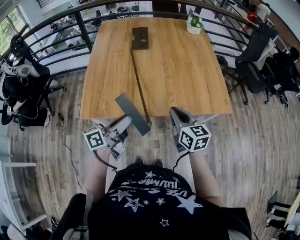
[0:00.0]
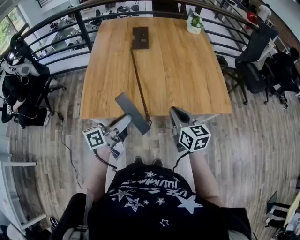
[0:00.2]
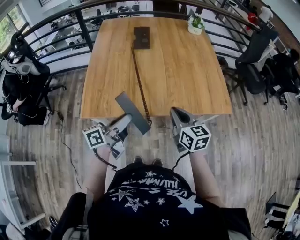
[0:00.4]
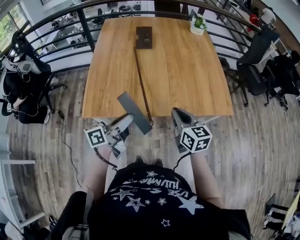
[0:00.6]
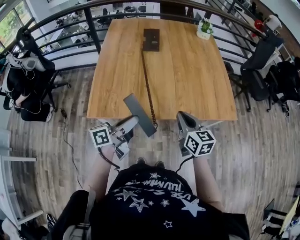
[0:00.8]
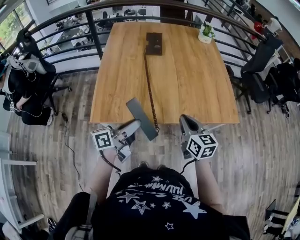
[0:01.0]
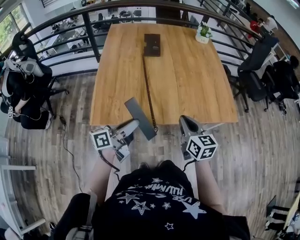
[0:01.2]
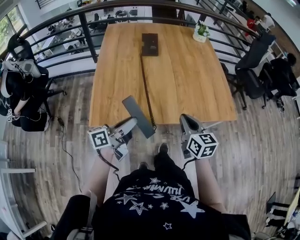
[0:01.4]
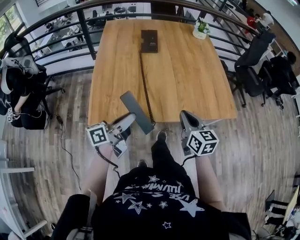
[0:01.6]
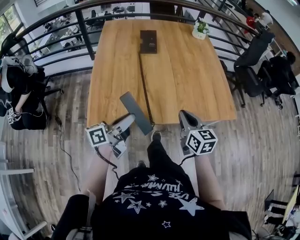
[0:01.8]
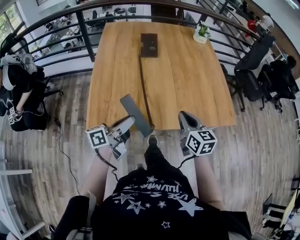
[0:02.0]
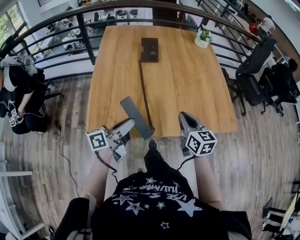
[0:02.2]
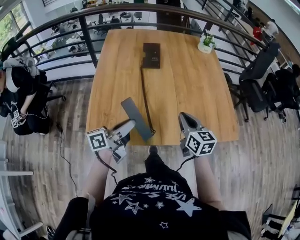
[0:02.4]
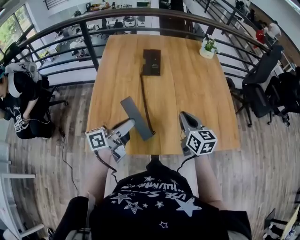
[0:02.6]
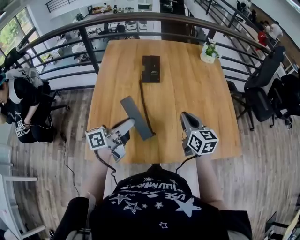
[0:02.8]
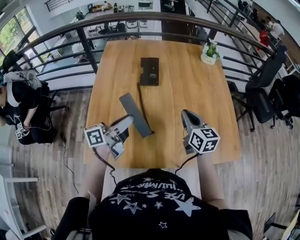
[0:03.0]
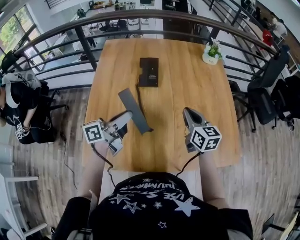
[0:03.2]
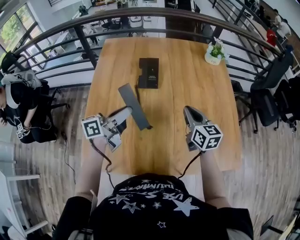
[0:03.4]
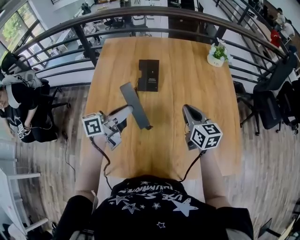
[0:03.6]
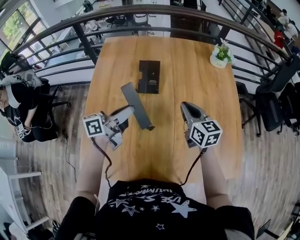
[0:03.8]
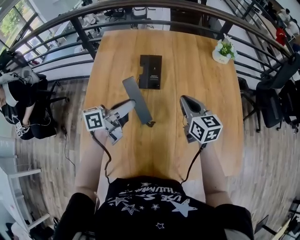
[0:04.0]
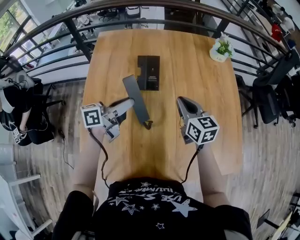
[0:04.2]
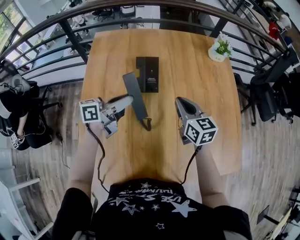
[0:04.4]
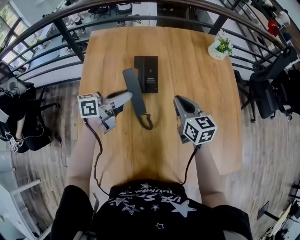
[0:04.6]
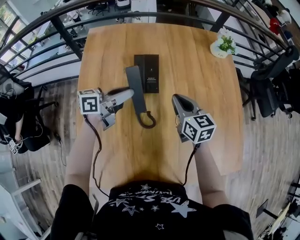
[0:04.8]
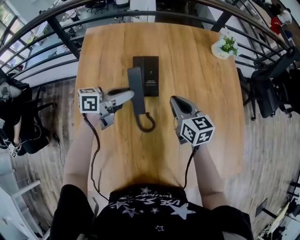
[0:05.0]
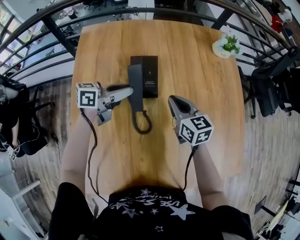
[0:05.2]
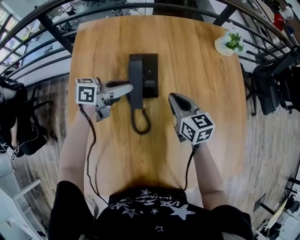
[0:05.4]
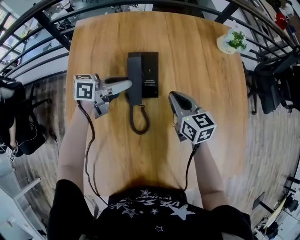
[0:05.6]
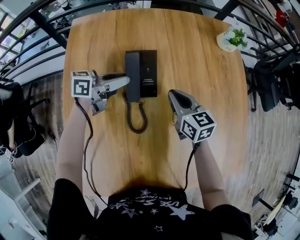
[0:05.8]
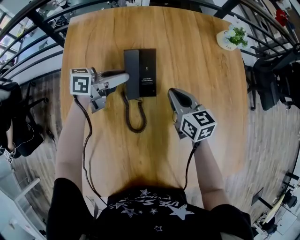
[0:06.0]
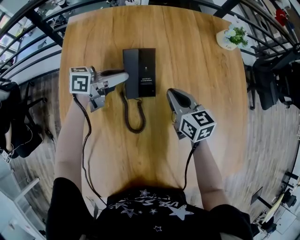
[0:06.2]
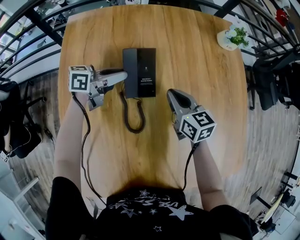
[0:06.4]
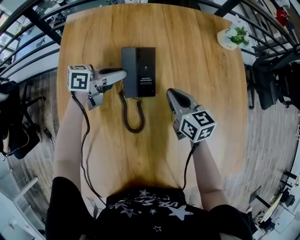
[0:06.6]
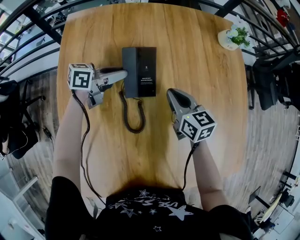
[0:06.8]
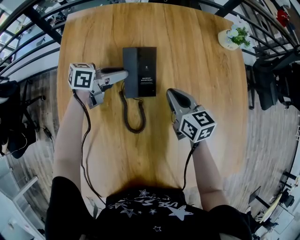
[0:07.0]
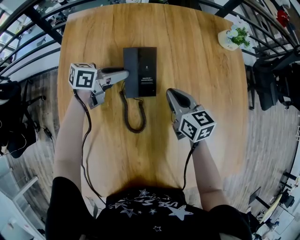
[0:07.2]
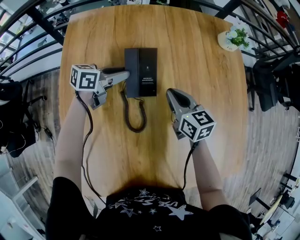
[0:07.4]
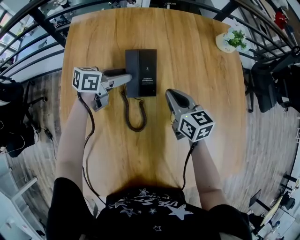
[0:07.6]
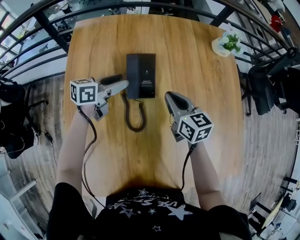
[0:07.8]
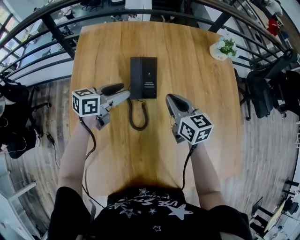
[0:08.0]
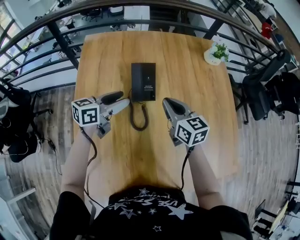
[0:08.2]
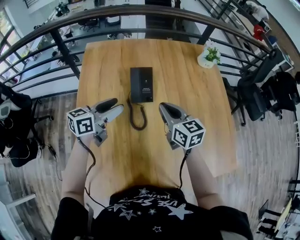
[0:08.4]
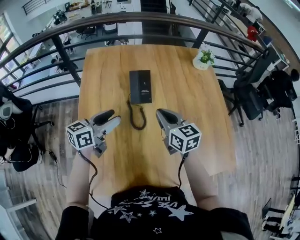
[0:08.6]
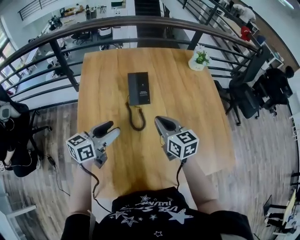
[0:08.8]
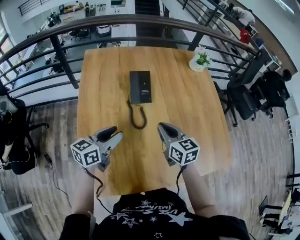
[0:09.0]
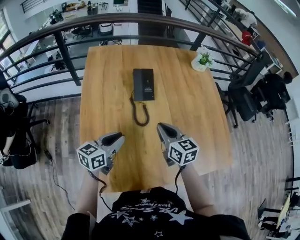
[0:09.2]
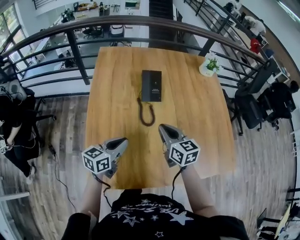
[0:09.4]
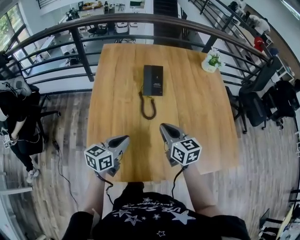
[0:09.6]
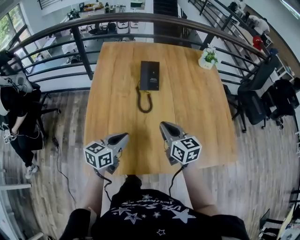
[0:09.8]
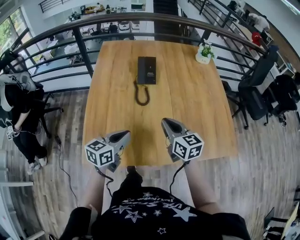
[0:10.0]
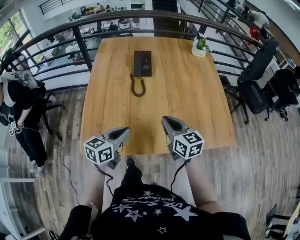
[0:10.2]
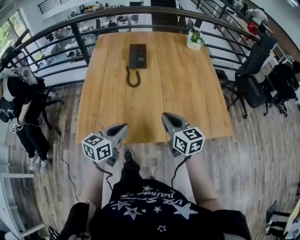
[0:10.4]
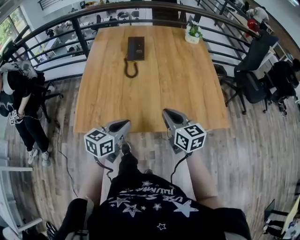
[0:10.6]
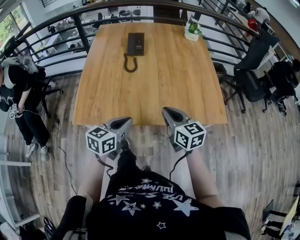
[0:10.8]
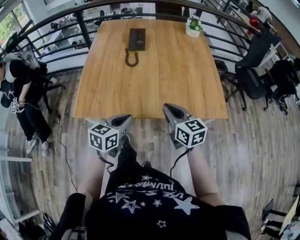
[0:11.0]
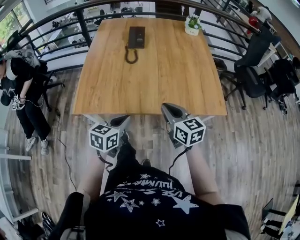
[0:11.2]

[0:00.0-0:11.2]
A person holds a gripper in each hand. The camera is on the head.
0:00.0 to 0:01.6: The left gripper travels to the left by roughly 5 cm.
0:01.6 to 0:03.2: The grippers both shift forward by approximately 30 cm.
0:03.2 to 0:04.8: The left gripper is displaced forward by some 20 cm. Meanwhile the right gripper heads forward and to the left, covering about 15 cm.
0:04.8 to 0:06.4: The left gripper travels forward and downward by some 15 cm; the right gripper moves downward and forward, about 10 cm.
0:06.4 to 0:08.0: The right gripper is displaced upward by roughly 5 cm; the left gripper heads backward, covering approximately 5 cm, and opens its fingers.
0:08.0 to 0:09.6: The two grippers go about 25 cm backward. The left gripper closes its fingers.
0:09.6 to 0:11.2: Both grippers move backward and to the right, some 30 cm.

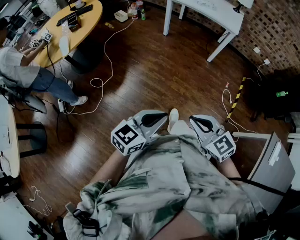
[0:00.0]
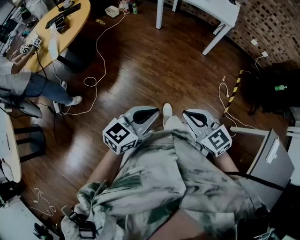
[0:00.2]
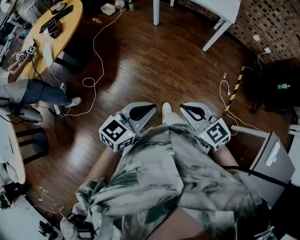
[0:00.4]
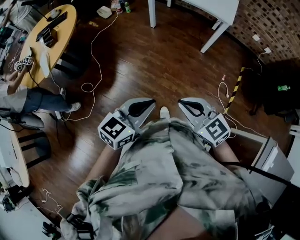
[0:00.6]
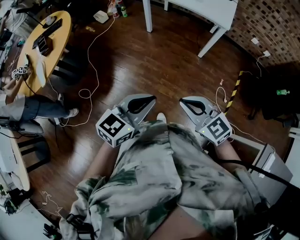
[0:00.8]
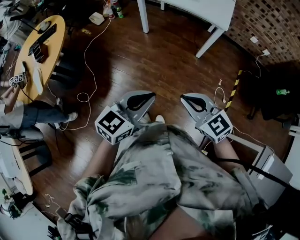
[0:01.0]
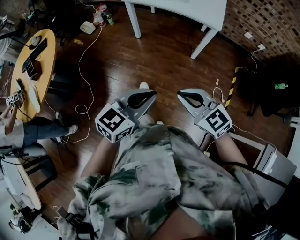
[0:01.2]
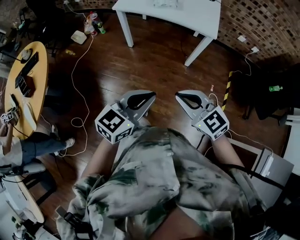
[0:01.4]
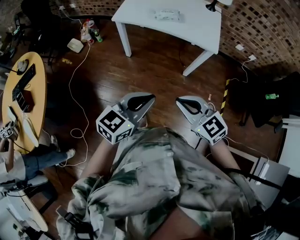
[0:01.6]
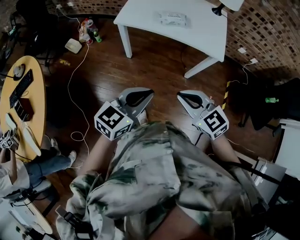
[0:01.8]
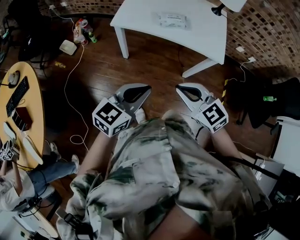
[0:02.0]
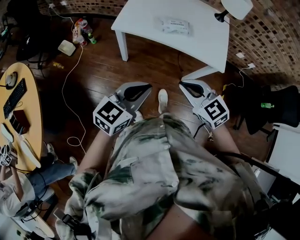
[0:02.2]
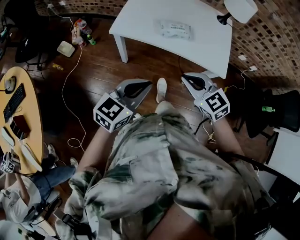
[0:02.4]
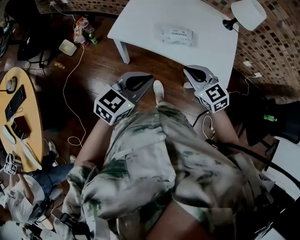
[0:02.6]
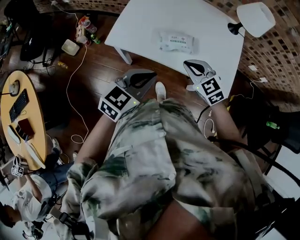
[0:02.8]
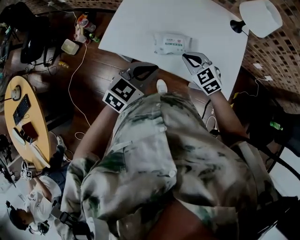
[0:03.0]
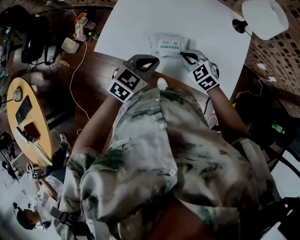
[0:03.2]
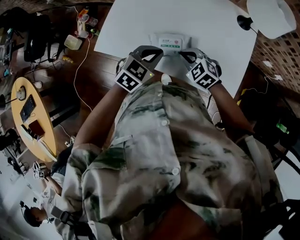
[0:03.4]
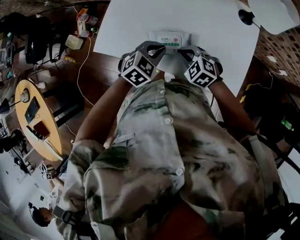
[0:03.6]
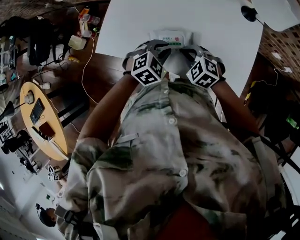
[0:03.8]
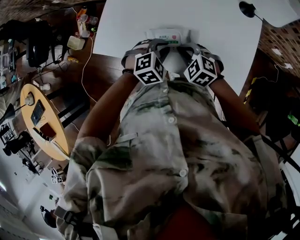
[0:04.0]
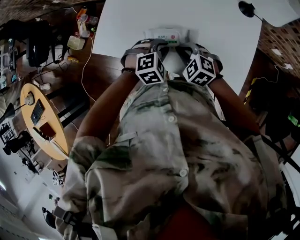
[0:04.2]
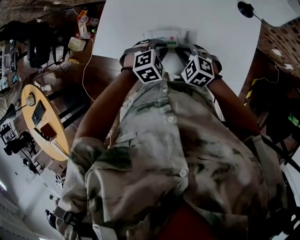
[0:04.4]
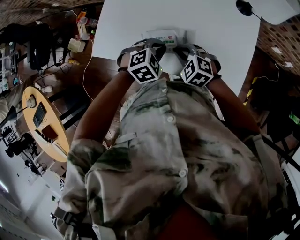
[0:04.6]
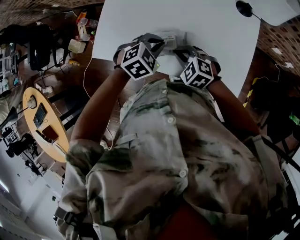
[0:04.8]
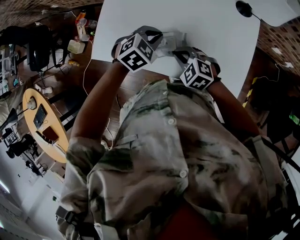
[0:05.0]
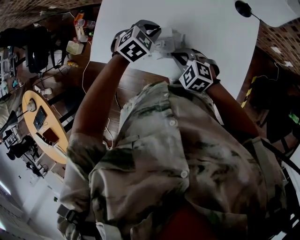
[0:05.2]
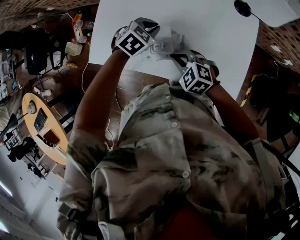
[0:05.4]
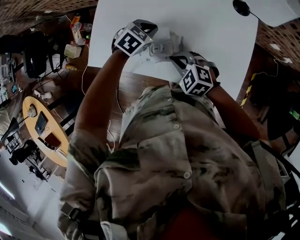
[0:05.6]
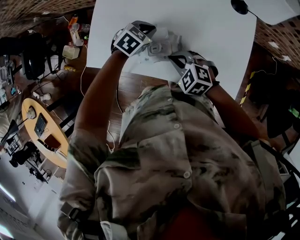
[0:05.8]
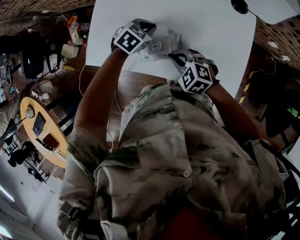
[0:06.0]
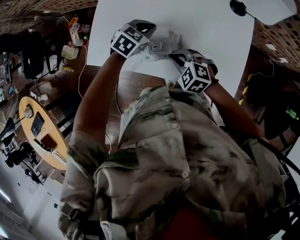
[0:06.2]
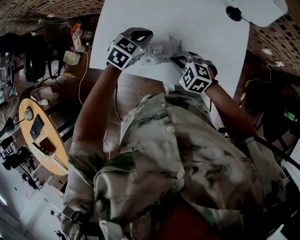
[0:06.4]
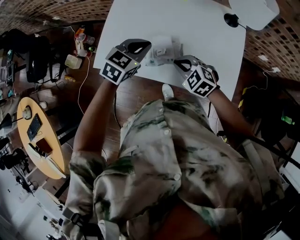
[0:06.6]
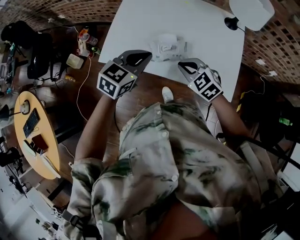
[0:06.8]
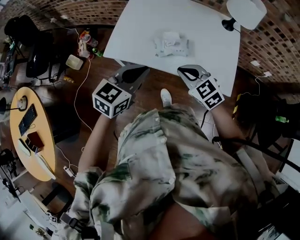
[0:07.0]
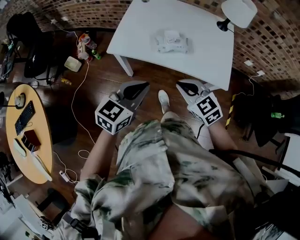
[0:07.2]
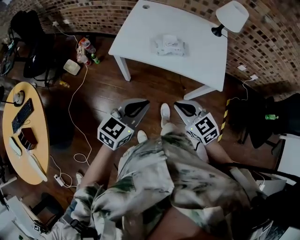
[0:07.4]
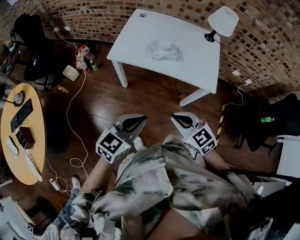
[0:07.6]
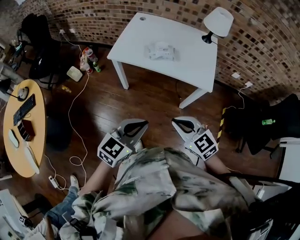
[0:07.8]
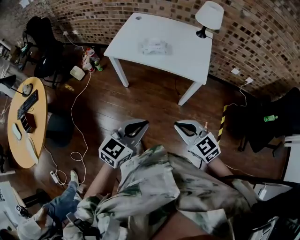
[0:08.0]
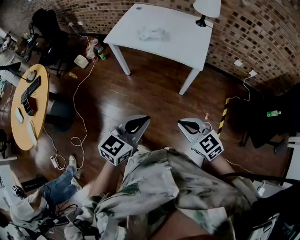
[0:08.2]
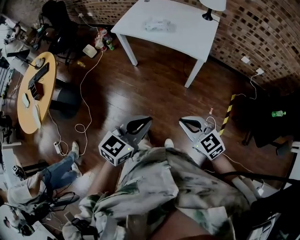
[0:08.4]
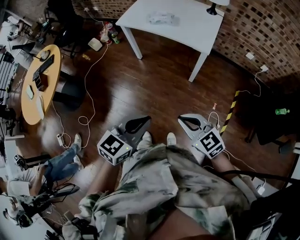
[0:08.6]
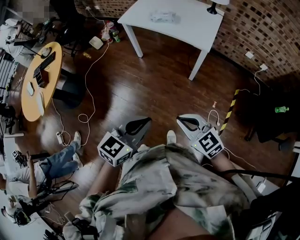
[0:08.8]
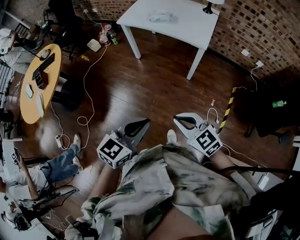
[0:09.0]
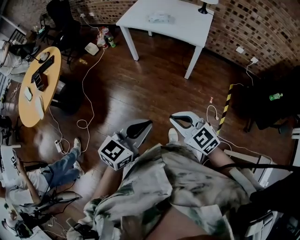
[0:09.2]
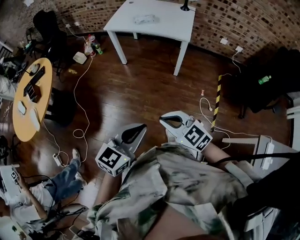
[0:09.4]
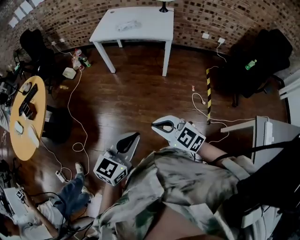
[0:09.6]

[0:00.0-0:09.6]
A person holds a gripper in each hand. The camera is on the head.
0:00.0 to 0:01.6: Both grippers are carried forward, some 60 cm.
0:01.6 to 0:03.2: The two grippers travel together, forward, some 50 cm. The left gripper changes its angle by some 20 degrees. Meanwhile the right gripper turns by about 20 degrees.
0:03.2 to 0:04.8: The left gripper heads downward, forward and to the right, covering roughly 10 cm, and swivels approximately 30 degrees.
0:04.8 to 0:06.4: The left gripper is displaced forward by approximately 5 cm, and changes its angle by about 20 degrees.
0:06.4 to 0:08.0: The pair of grippers is taken backward, approximately 60 cm. The right gripper travels upward by roughly 20 cm, and rotates roughly 30 degrees; the left gripper changes its angle by roughly 30 degrees.
0:08.0 to 0:09.6: The two grippers go some 40 cm backward.

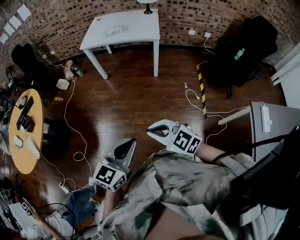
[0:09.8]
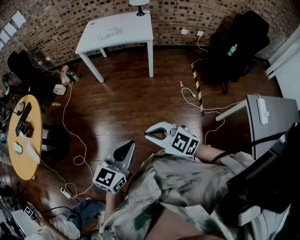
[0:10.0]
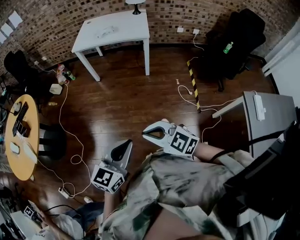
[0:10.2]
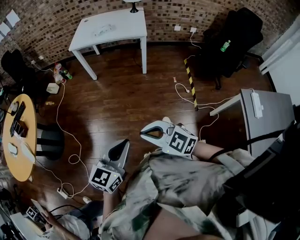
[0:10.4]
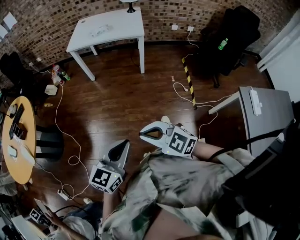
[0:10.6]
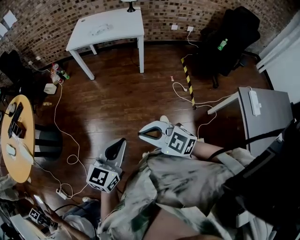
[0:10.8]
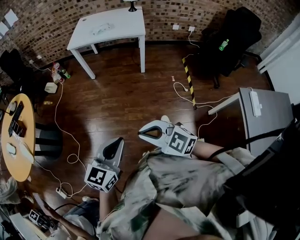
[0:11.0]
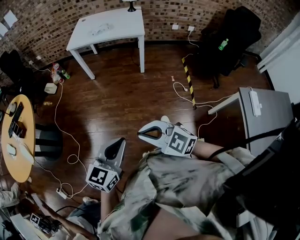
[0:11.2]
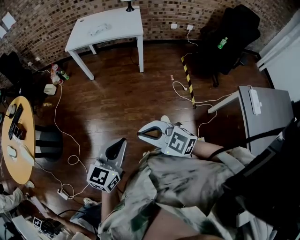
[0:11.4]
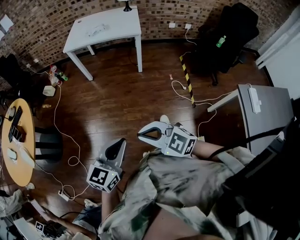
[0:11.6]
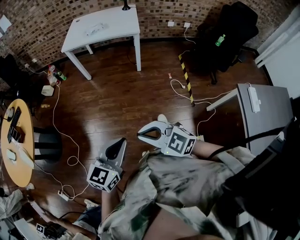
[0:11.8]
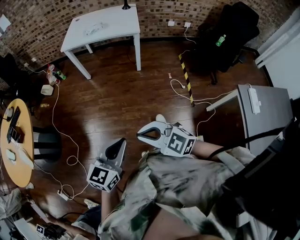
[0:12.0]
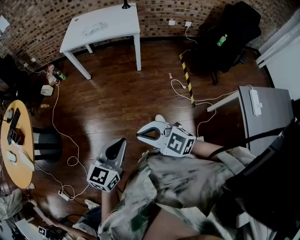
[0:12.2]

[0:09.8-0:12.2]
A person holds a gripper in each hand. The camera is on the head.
0:09.8 to 0:11.0: The right gripper travels backward by some 5 cm.
0:11.0 to 0:12.2: The grippers make only small movements.
